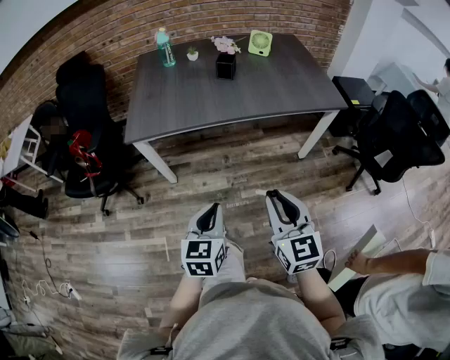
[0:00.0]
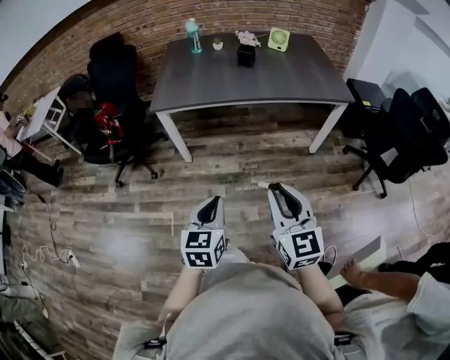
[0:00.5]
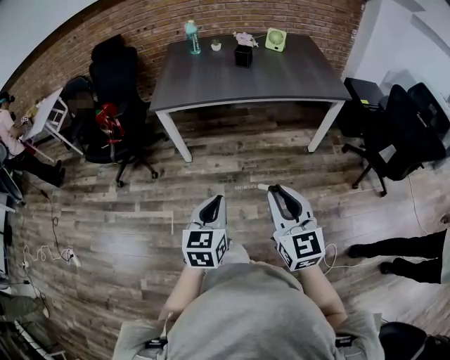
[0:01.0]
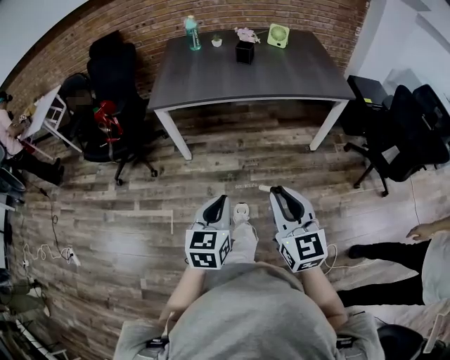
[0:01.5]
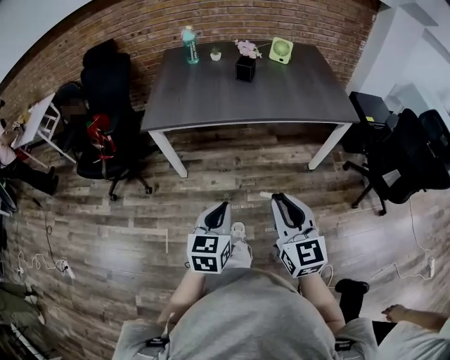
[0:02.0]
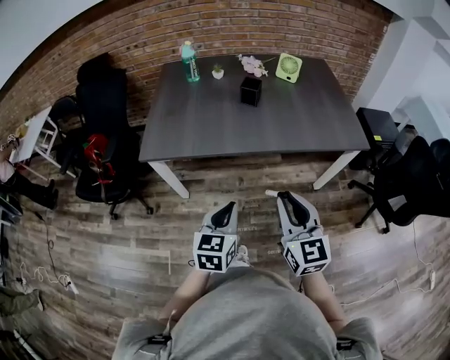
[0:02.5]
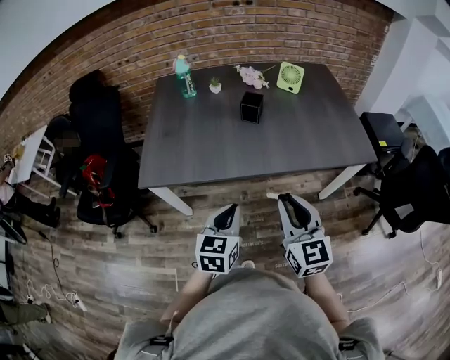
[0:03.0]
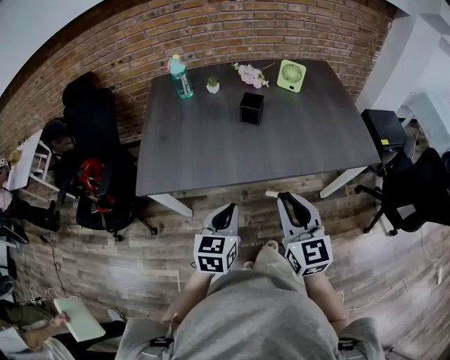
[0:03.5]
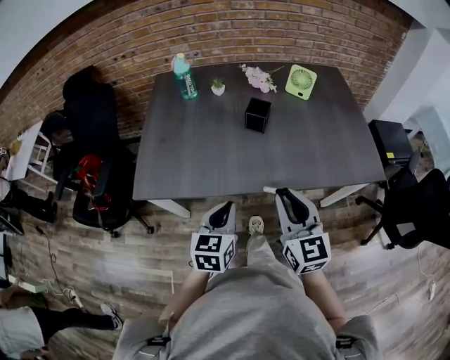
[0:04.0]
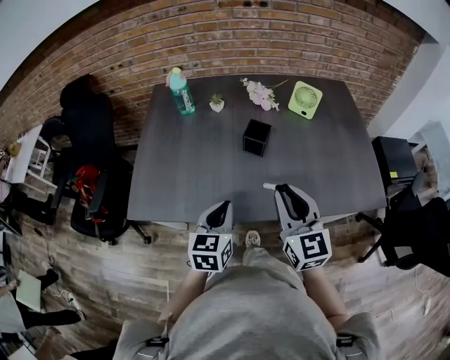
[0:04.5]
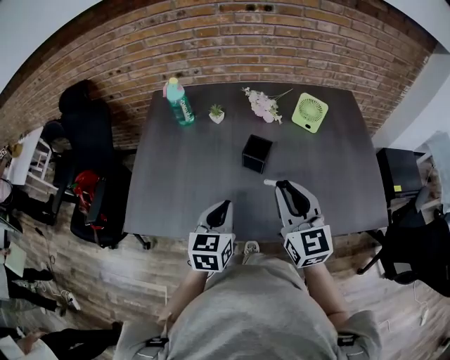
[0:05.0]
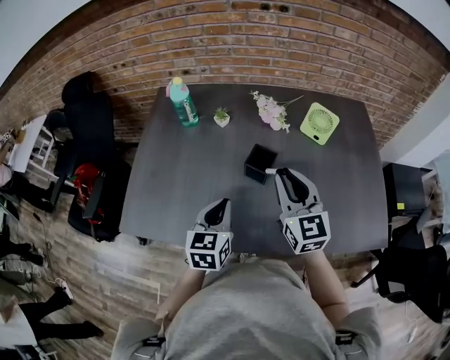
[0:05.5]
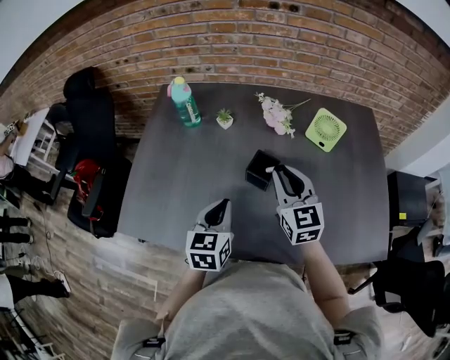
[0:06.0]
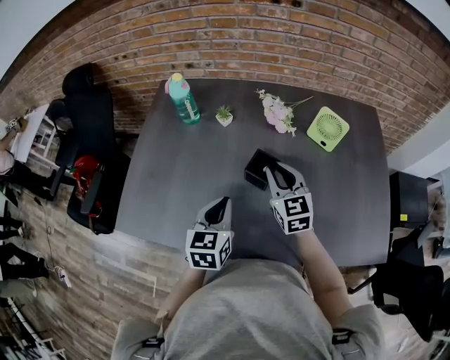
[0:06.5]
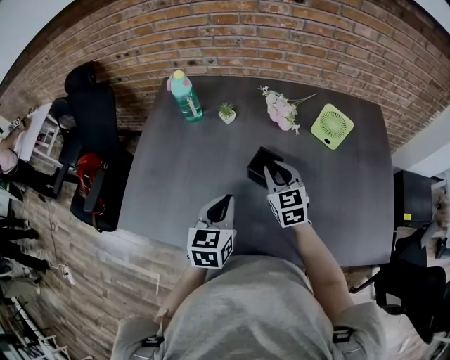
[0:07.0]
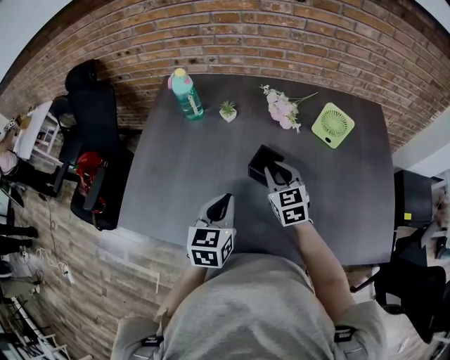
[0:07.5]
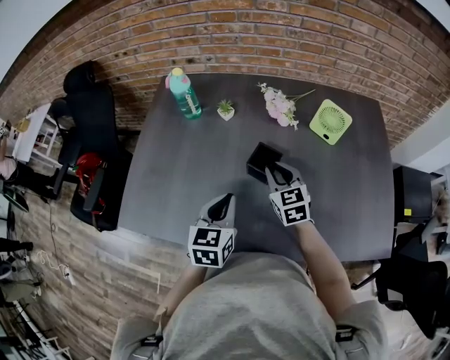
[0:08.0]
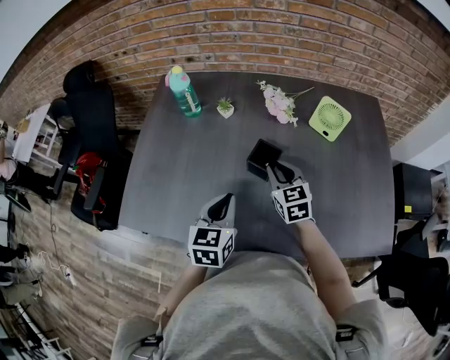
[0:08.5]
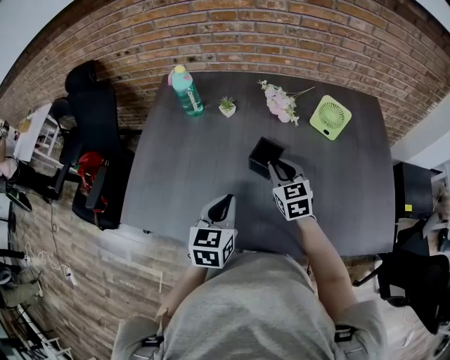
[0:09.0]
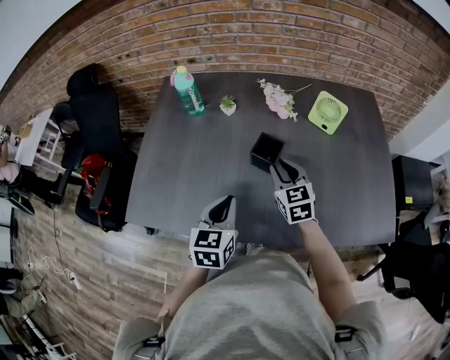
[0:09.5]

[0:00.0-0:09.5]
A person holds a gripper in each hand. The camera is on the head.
0:00.0 to 0:02.0: The right gripper travels backward and back again, some 15 cm each way. Meanwhile the left gripper reaches about 15 cm backward, then returns.
0:02.0 to 0:04.0: The grippers both shift forward by approximately 40 cm.
0:04.0 to 0:05.5: Both grippers move forward, about 25 cm.
0:05.5 to 0:07.5: The right gripper shifts about 15 cm downward and forward.
0:07.5 to 0:09.5: The grippers both shift backward by about 5 cm.

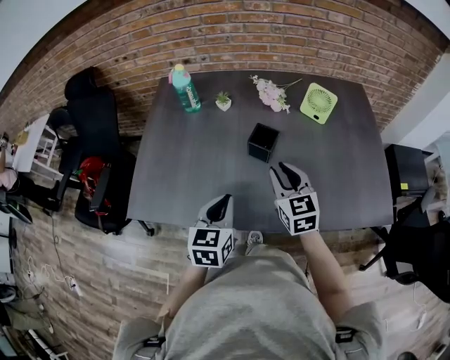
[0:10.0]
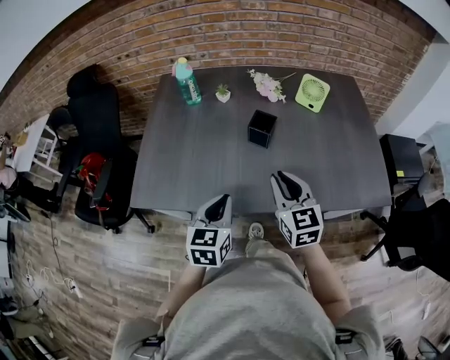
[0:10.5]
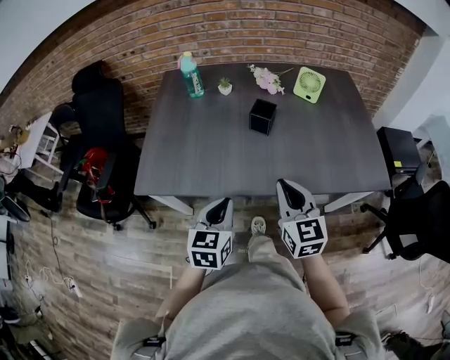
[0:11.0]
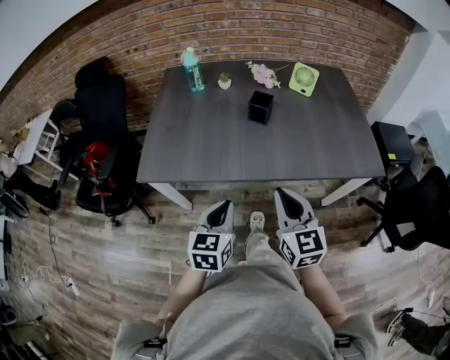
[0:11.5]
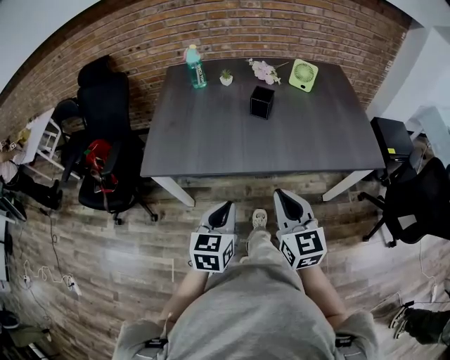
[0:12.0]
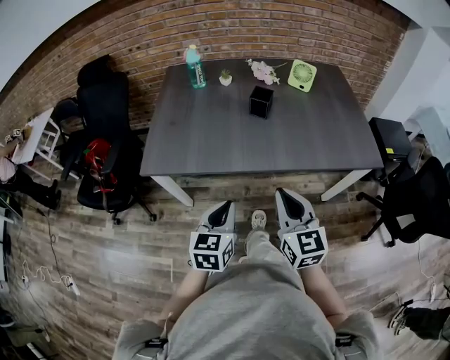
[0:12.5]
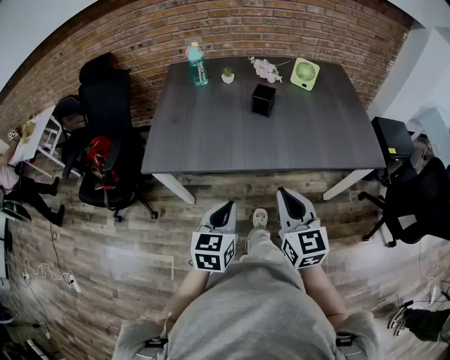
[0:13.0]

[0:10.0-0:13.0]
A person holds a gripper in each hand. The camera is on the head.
0:10.0 to 0:11.5: Both grippers move backward, some 25 cm.
0:11.5 to 0:13.0: The grippers make only small movements.

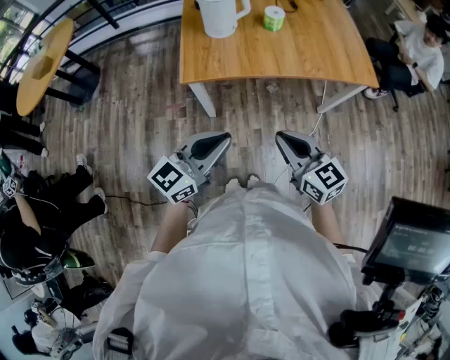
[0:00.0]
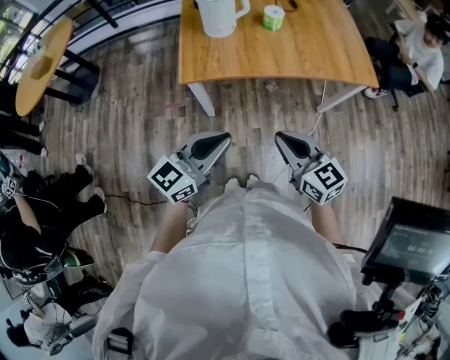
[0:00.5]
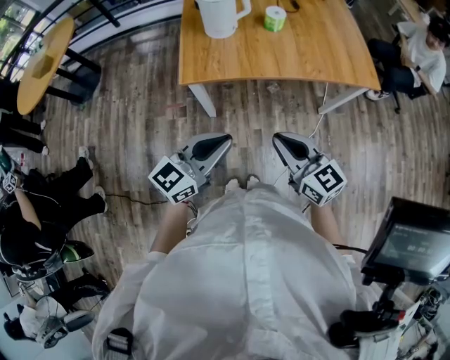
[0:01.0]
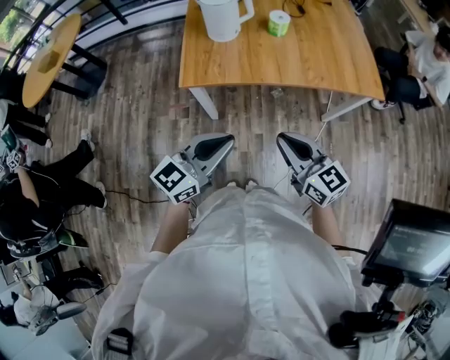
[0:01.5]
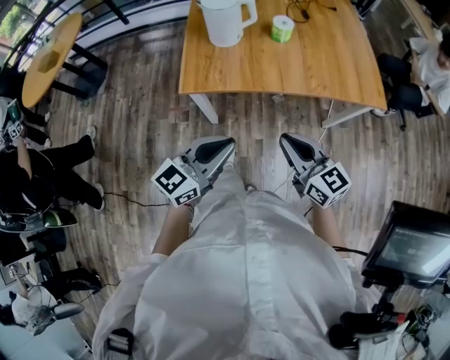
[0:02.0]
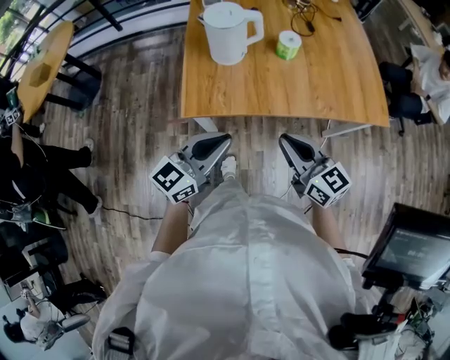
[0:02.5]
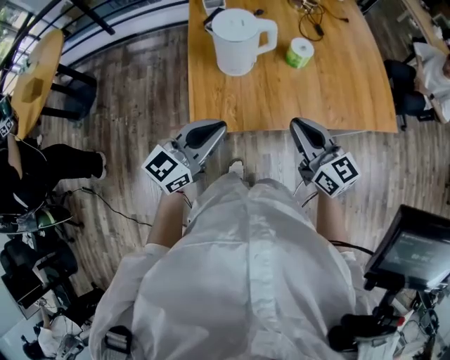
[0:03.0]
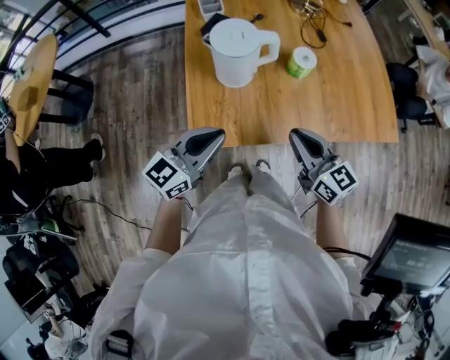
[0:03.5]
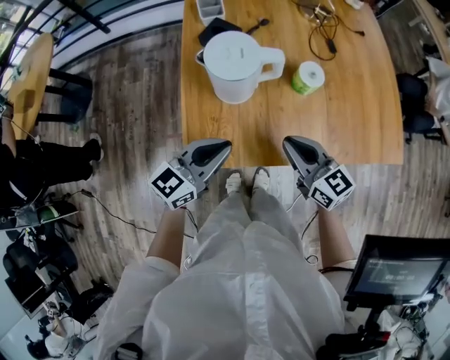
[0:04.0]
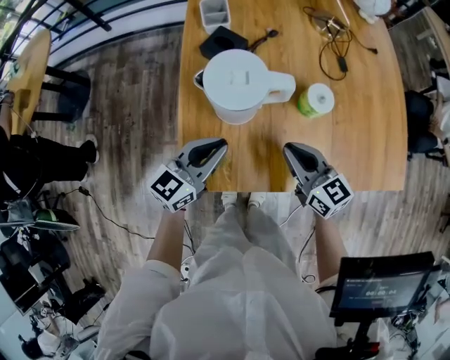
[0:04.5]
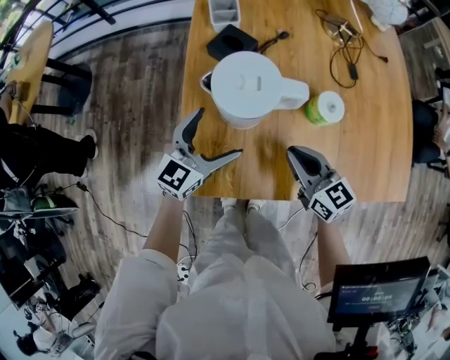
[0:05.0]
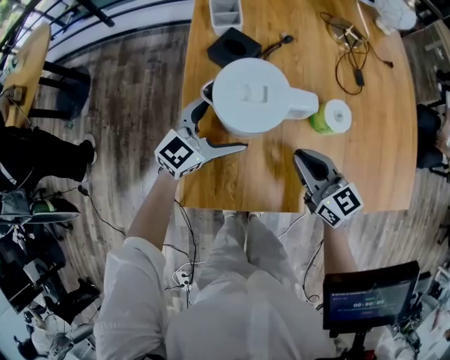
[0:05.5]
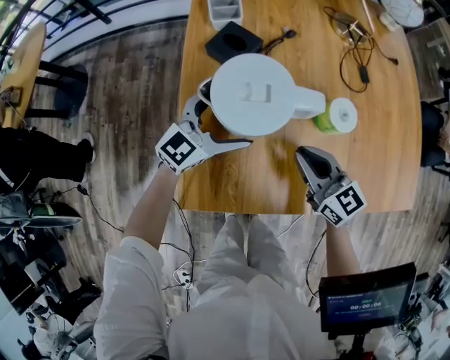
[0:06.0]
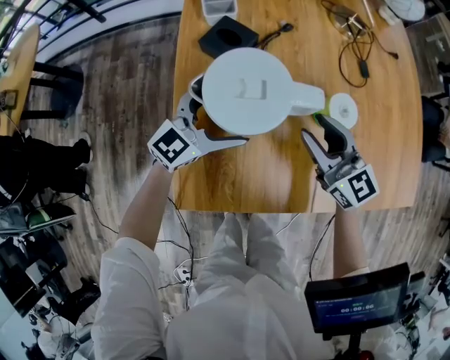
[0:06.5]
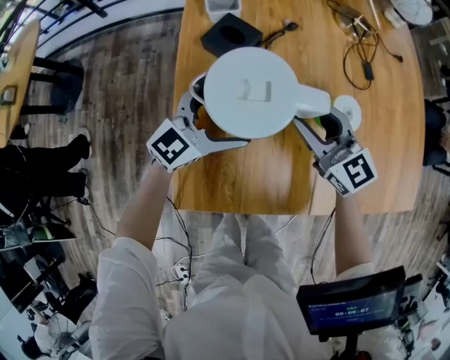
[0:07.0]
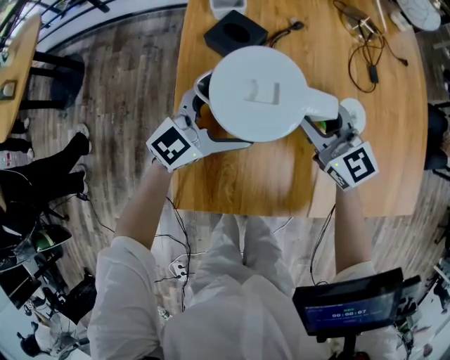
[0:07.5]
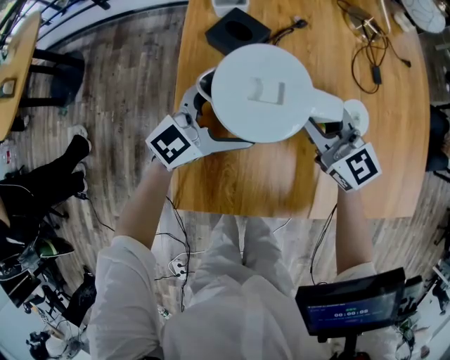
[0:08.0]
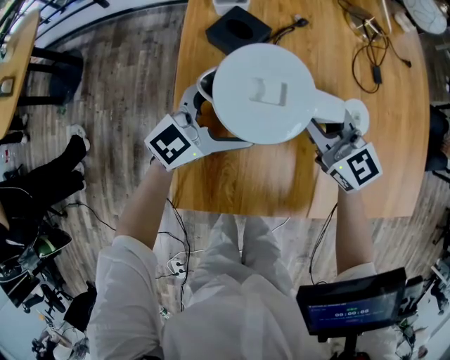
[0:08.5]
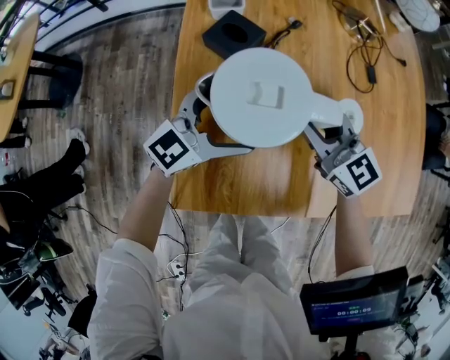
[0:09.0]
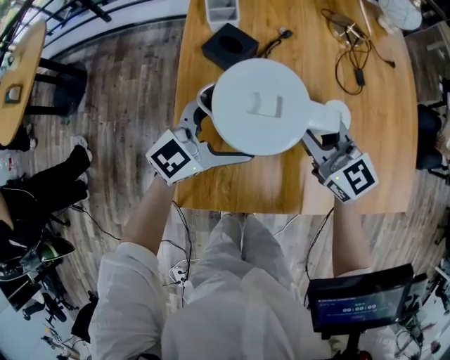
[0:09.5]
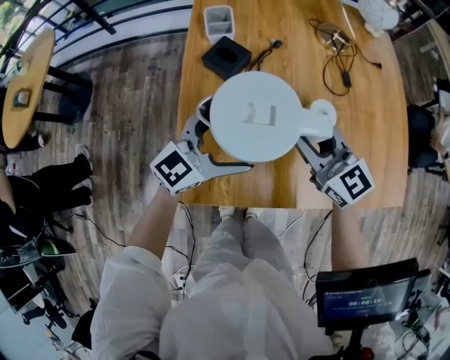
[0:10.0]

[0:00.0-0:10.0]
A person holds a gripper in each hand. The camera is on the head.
0:00.0 to 0:02.0: The grippers both shift forward by approximately 5 cm.
0:02.0 to 0:04.0: The grippers both shift forward by about 30 cm.
0:04.0 to 0:06.0: The right gripper shifts some 15 cm forward and downward. Meanwhile the left gripper is displaced forward and downward by roughly 20 cm, and opens.
0:06.0 to 0:08.0: The right gripper goes approximately 10 cm forward, and opens its fingers.
0:08.0 to 0:10.0: Both grippers move upward and backward, about 10 cm.

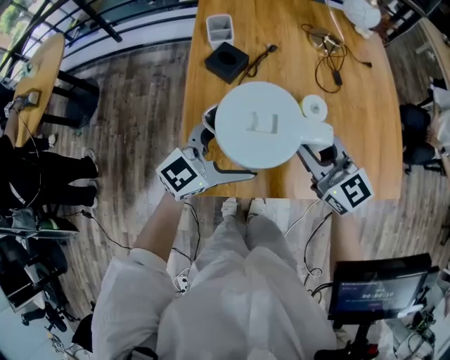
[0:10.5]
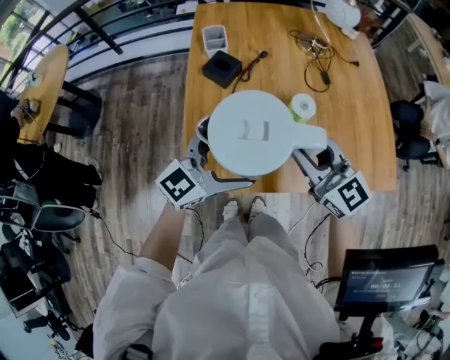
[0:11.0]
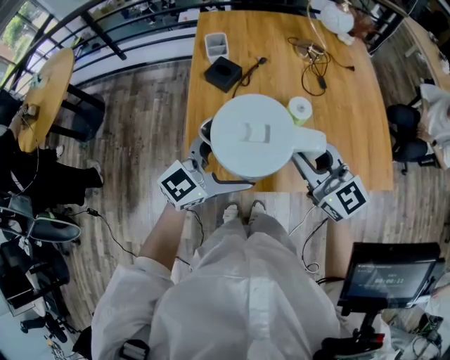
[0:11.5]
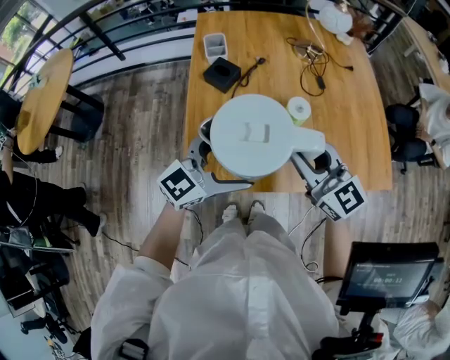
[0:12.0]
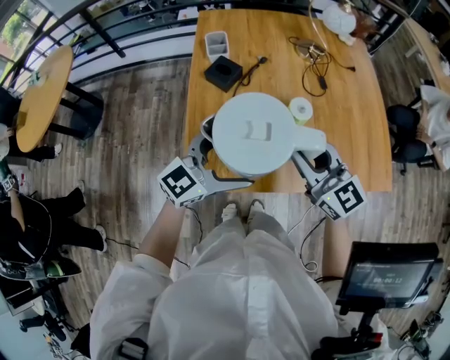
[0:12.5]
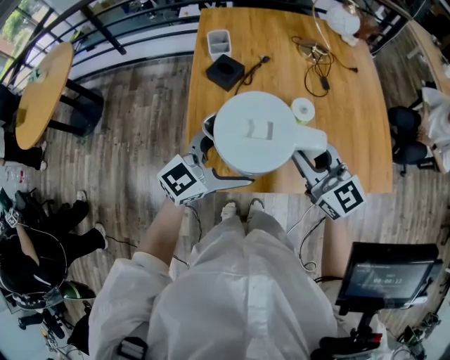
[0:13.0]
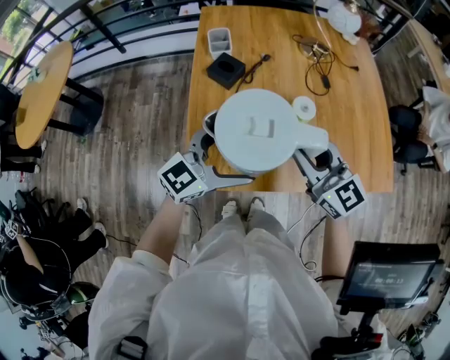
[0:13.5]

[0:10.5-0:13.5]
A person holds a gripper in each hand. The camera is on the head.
0:10.5 to 0:12.0: Both grippers travel together backward and upward, about 10 cm.
0:12.0 to 0:13.5: There are only small adjustments of the grippers.

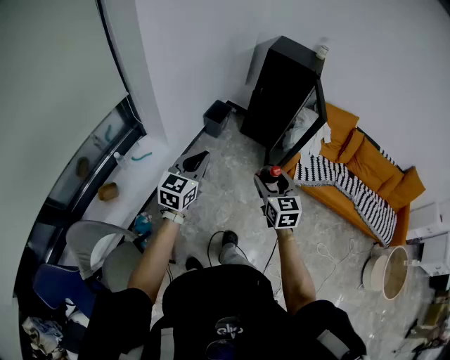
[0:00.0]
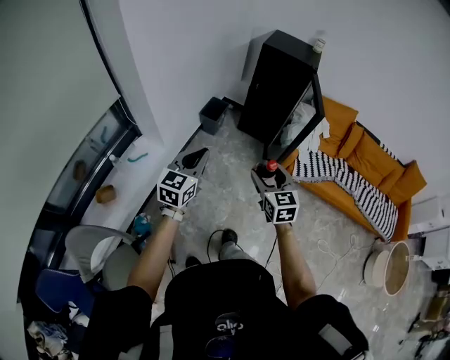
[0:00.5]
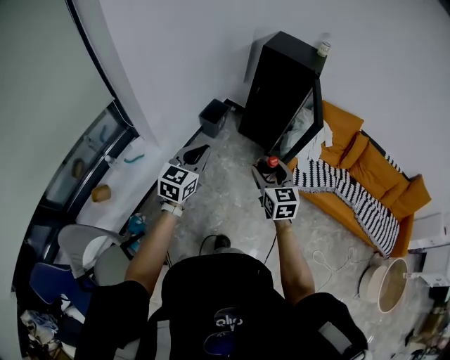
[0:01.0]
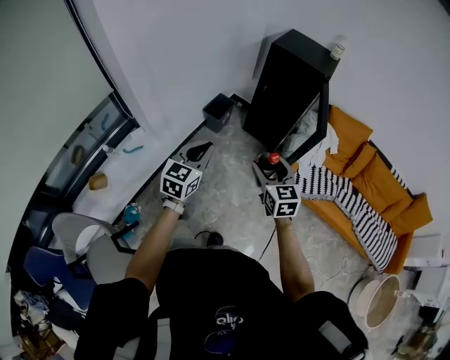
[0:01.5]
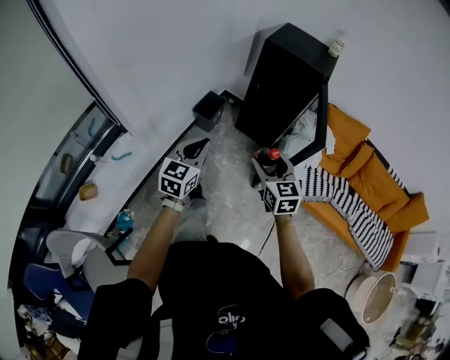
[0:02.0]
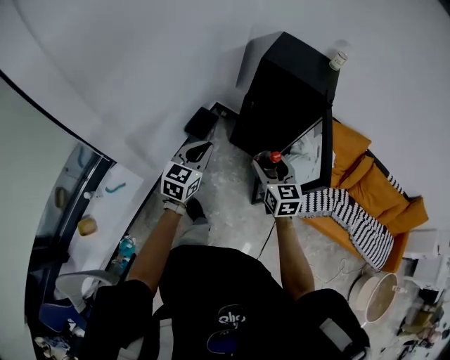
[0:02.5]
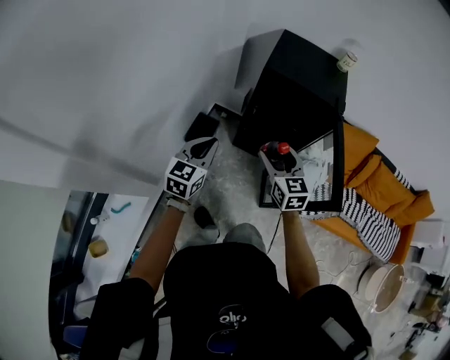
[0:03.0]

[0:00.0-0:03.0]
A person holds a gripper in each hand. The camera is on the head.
0:00.0 to 0:01.5: The grippers both shift forward and to the right by roughly 20 cm.
0:01.5 to 0:03.0: The pair of grippers is taken forward, some 40 cm.
